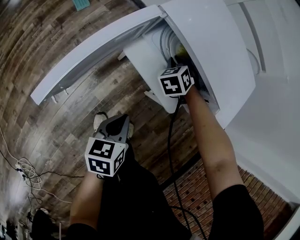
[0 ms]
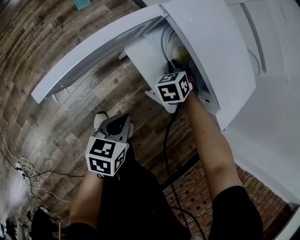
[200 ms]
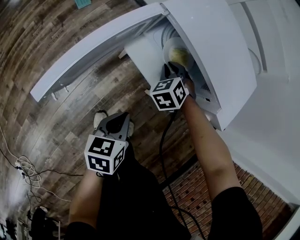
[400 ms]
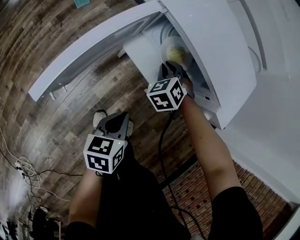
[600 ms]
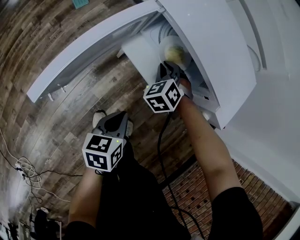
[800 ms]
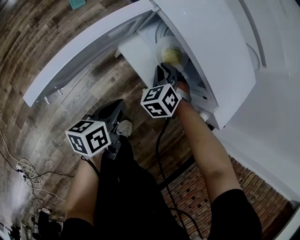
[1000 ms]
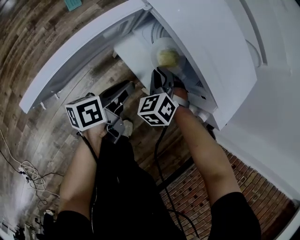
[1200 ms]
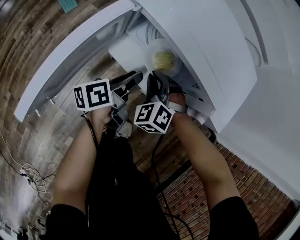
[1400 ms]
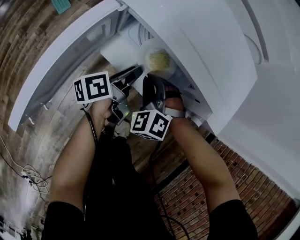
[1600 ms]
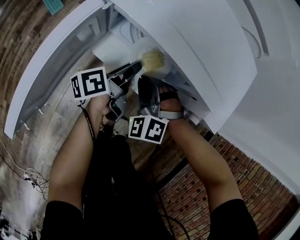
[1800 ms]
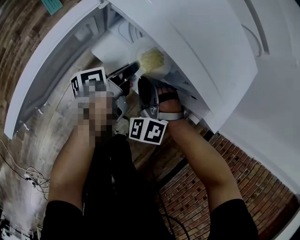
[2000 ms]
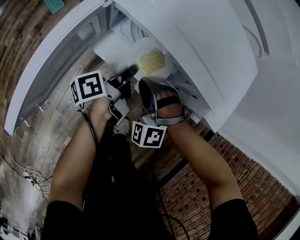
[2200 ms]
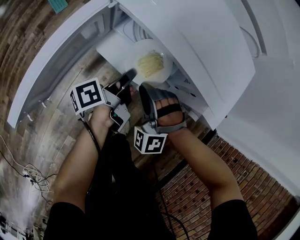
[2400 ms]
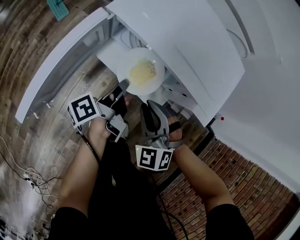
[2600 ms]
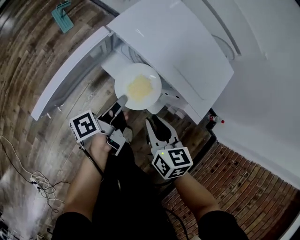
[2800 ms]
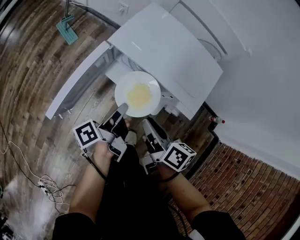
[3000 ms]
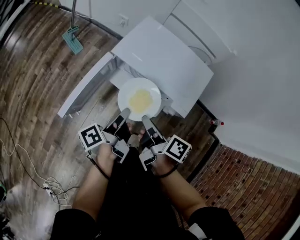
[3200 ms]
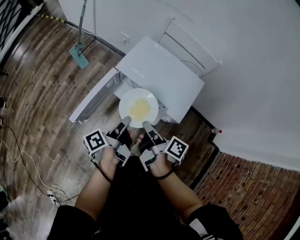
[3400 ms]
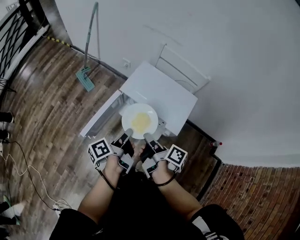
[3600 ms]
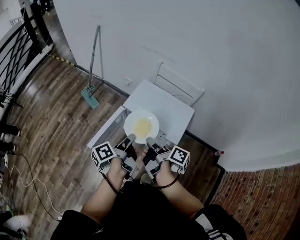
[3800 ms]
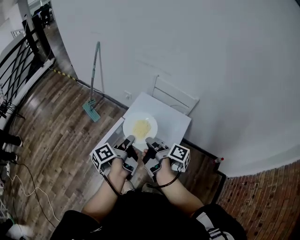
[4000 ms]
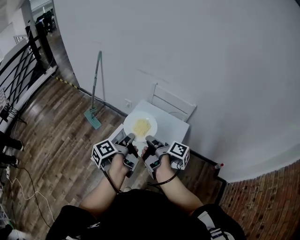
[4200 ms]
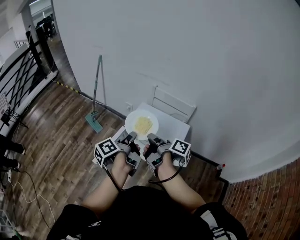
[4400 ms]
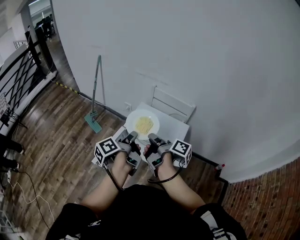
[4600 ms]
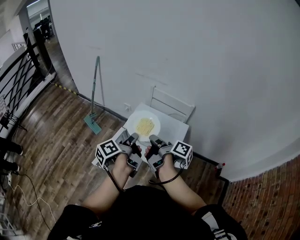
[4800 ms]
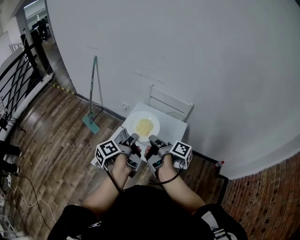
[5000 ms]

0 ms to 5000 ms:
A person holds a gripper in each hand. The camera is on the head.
0 ms to 1600 ms: The right gripper goes some 10 cm backward, and turns by some 20 degrees, while the left gripper goes about 20 cm forward, changes its angle by approximately 40 degrees, and opens its fingers.
1600 ms to 3400 ms: The right gripper heads upward, covering about 30 cm, rotates around the line of its fingers by about 140 degrees, clockwise from behind, and opens, then closes once more, while the left gripper heads upward and backward, covering roughly 30 cm, swivels approximately 20 degrees, and closes its fingers.
3400 ms to 5000 ms: The two grippers go roughly 20 cm upward.

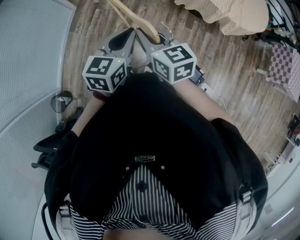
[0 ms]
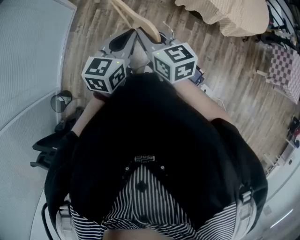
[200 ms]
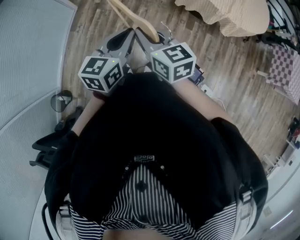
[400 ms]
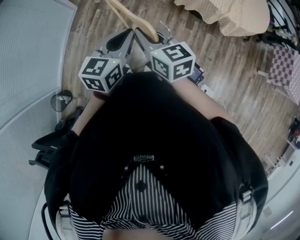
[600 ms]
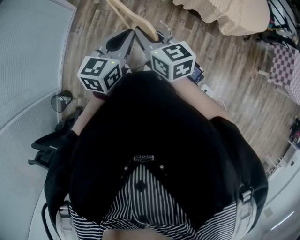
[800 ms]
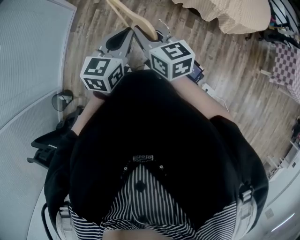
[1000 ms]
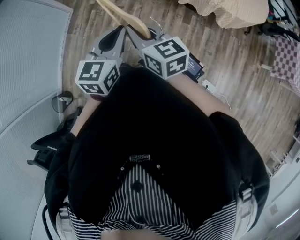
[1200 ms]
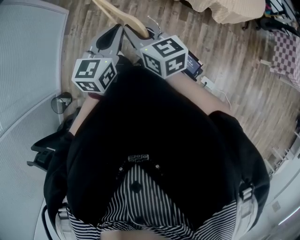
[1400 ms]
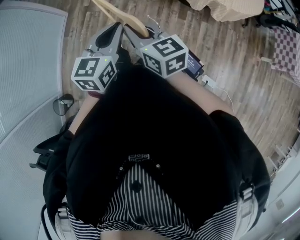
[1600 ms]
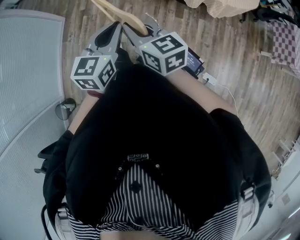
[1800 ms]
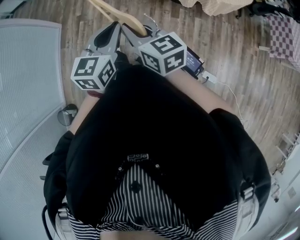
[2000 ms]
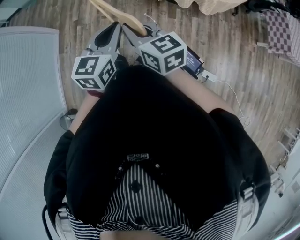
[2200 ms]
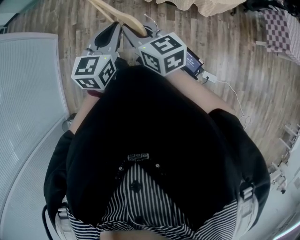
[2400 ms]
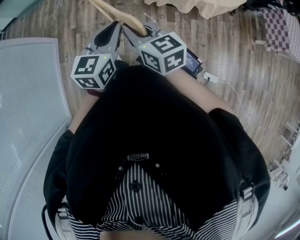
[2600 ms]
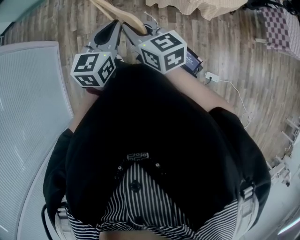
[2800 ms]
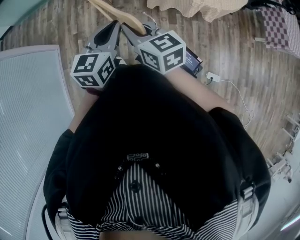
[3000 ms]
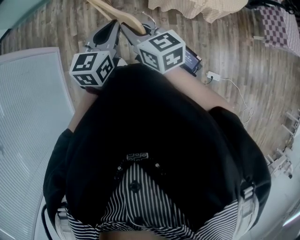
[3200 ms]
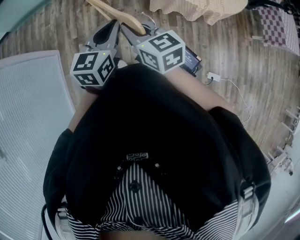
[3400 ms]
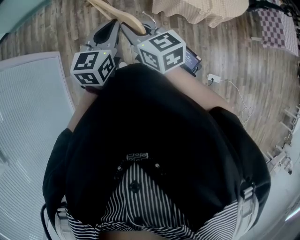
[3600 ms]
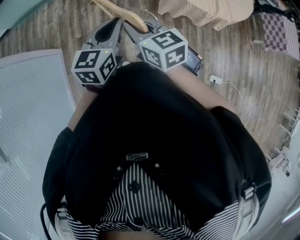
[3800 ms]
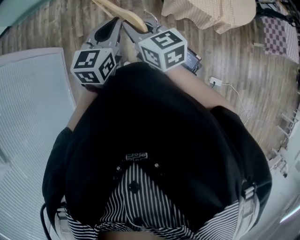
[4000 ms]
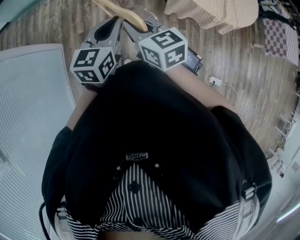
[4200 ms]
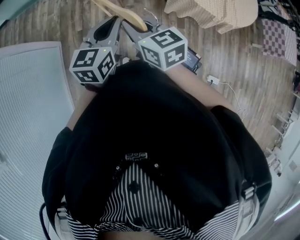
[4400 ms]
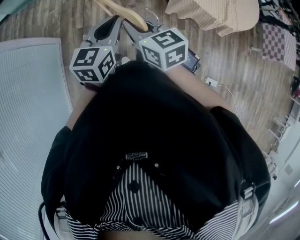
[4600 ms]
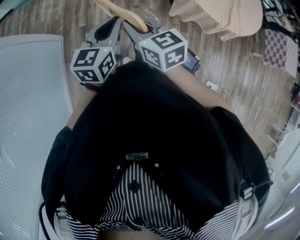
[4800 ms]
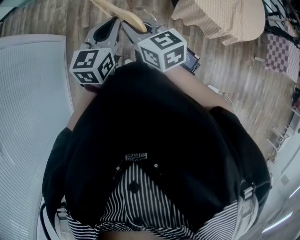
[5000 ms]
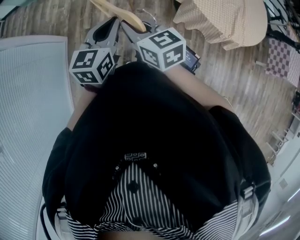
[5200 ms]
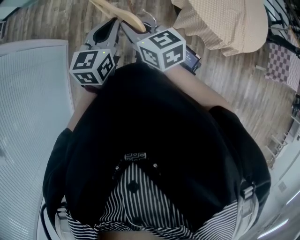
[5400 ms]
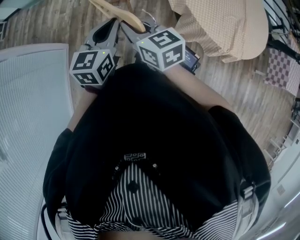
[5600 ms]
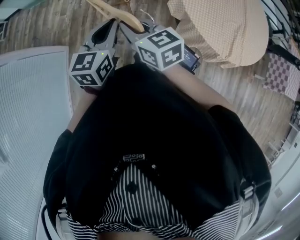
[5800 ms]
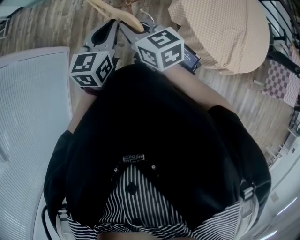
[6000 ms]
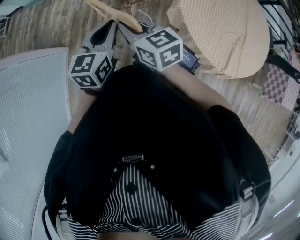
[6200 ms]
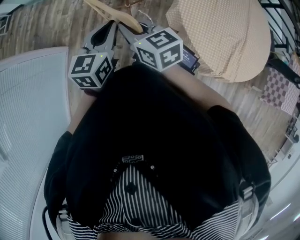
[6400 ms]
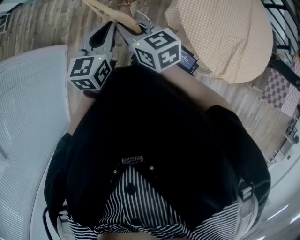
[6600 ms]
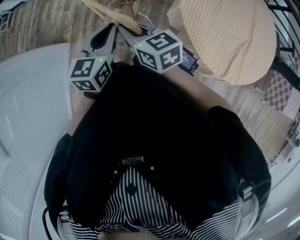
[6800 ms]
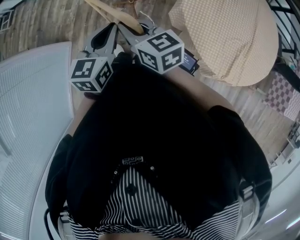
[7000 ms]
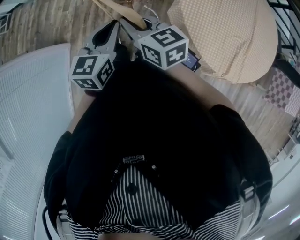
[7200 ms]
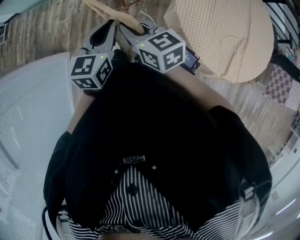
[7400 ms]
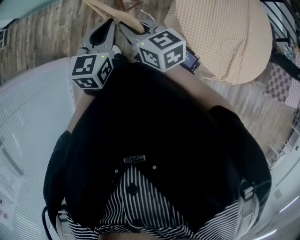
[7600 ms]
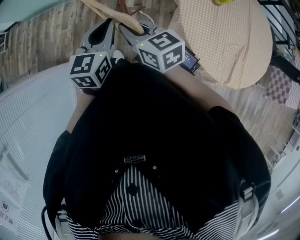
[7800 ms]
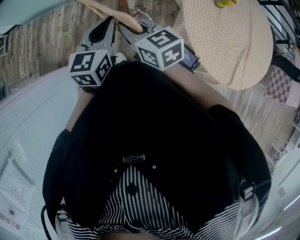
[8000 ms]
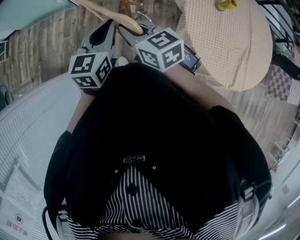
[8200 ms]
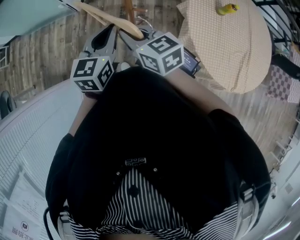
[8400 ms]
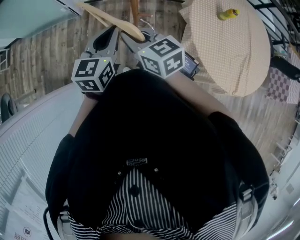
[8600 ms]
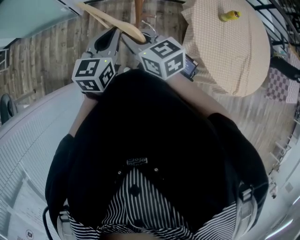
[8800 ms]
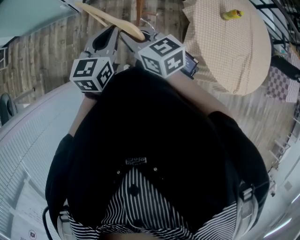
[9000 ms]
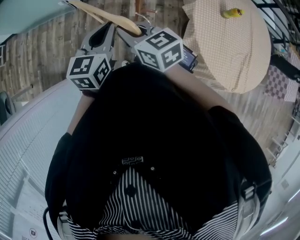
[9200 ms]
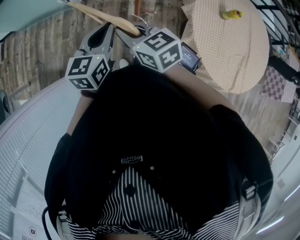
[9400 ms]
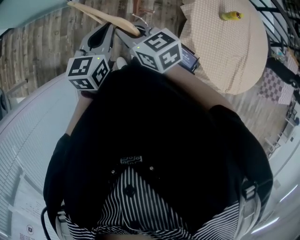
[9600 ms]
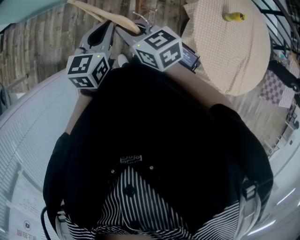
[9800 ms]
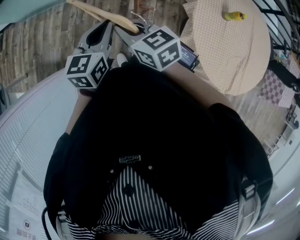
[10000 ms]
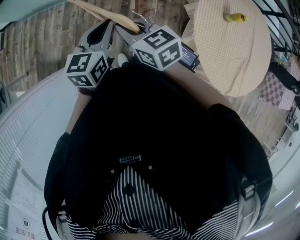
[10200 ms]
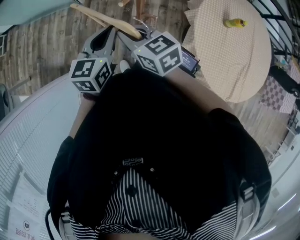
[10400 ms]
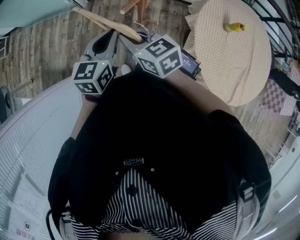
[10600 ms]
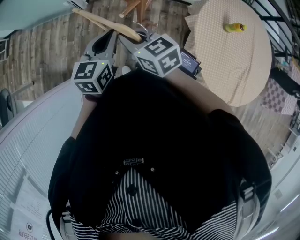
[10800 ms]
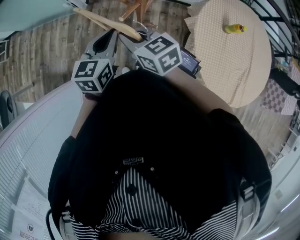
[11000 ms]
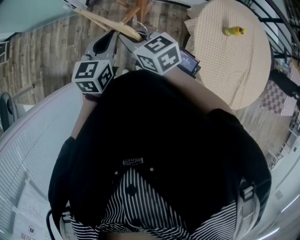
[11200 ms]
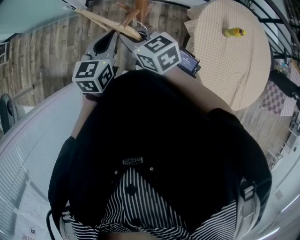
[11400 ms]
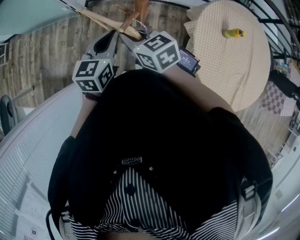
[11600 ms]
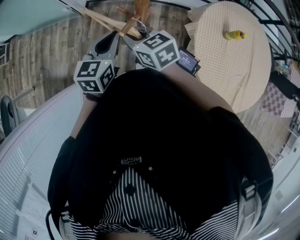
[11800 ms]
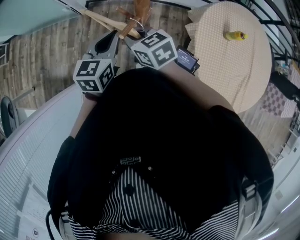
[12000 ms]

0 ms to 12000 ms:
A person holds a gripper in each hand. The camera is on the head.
0 ms to 1600 ms: Both grippers move to the right, about 15 cm.
1600 ms to 3000 ms: The grippers both shift forward by roughly 25 cm.
3000 ms to 4400 ms: Both grippers move to the left and forward, approximately 30 cm.
4400 ms to 6000 ms: Both grippers travel together forward, roughly 25 cm.
6000 ms to 7600 ms: The two grippers go roughly 20 cm forward and to the right.
7600 ms to 9000 ms: The two grippers go some 25 cm forward and to the left.
9000 ms to 10400 ms: The left gripper changes place by about 5 cm. Meanwhile the right gripper moves roughly 5 cm.
10400 ms to 12000 ms: The two grippers go roughly 10 cm forward.

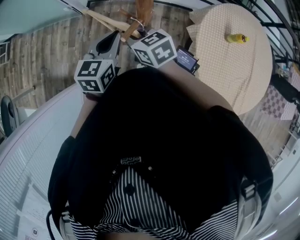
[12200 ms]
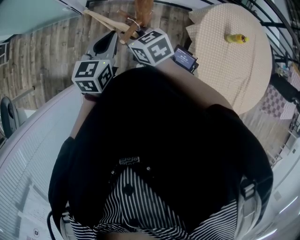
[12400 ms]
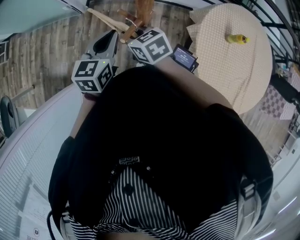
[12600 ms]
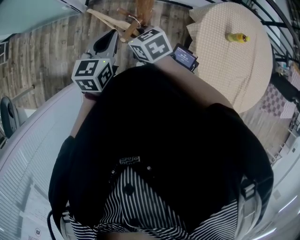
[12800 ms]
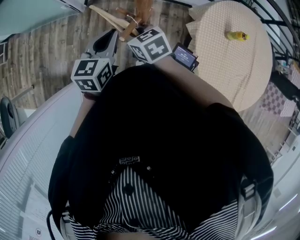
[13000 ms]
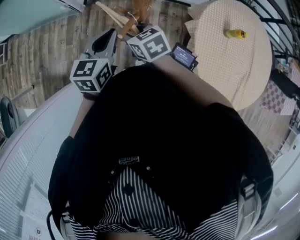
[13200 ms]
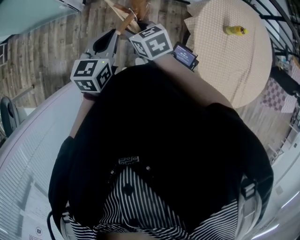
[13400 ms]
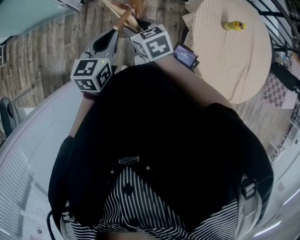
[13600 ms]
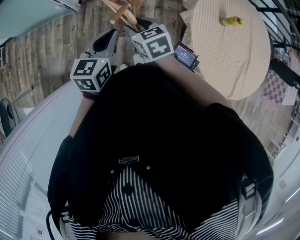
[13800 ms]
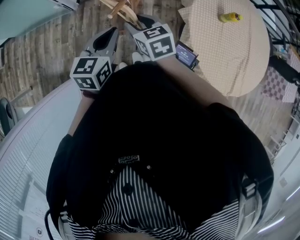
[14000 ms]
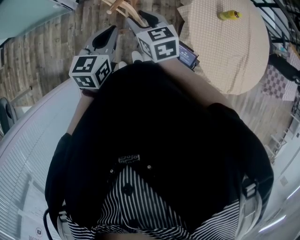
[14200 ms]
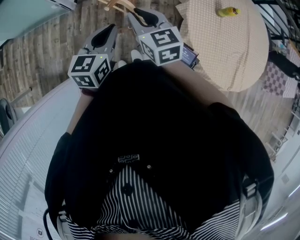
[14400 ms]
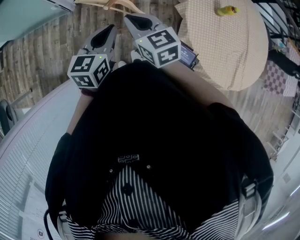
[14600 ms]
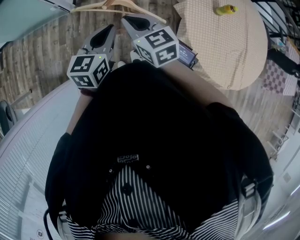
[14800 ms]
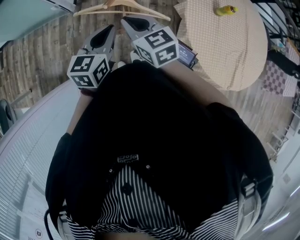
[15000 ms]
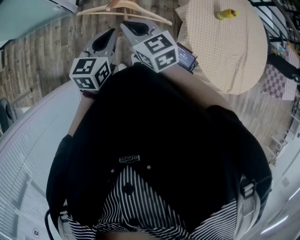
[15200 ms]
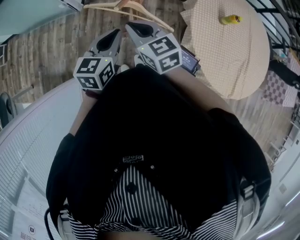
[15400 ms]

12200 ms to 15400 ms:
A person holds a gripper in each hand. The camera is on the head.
12200 ms to 13800 ms: The left gripper shifts approximately 5 cm backward, while the right gripper shifts by approximately 5 cm, and opens up.
13800 ms to 15400 ms: The right gripper moves upward and backward, some 10 cm, and closes. Meanwhile the left gripper heads backward, covering roughly 5 cm.

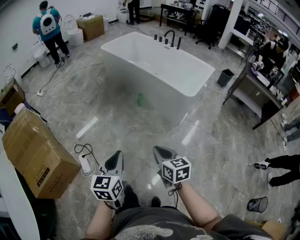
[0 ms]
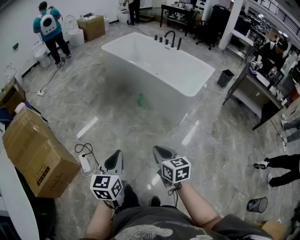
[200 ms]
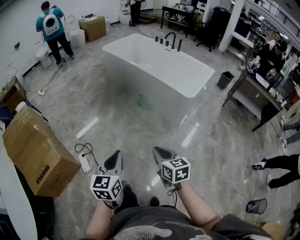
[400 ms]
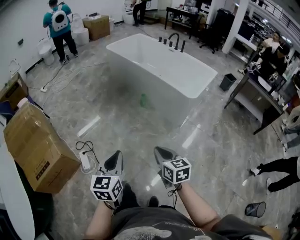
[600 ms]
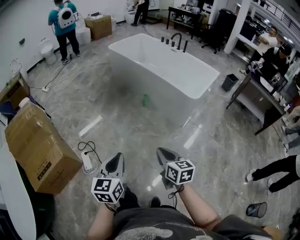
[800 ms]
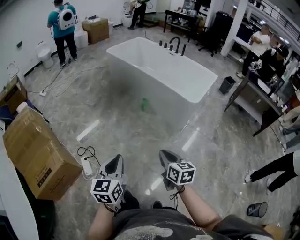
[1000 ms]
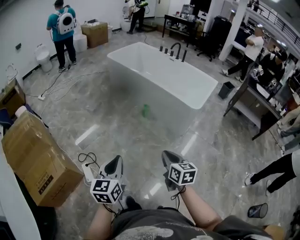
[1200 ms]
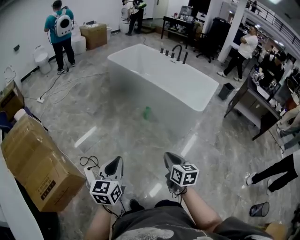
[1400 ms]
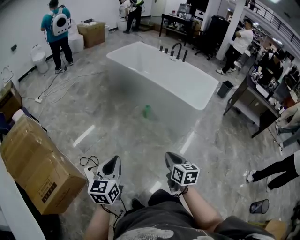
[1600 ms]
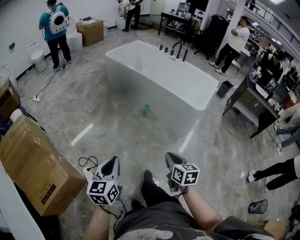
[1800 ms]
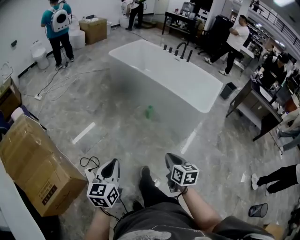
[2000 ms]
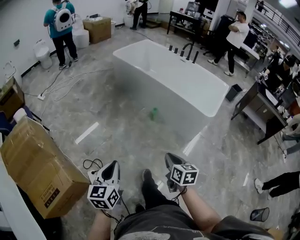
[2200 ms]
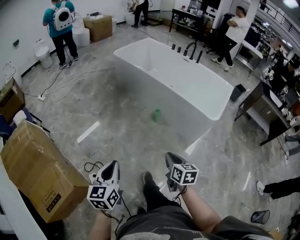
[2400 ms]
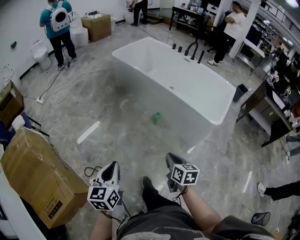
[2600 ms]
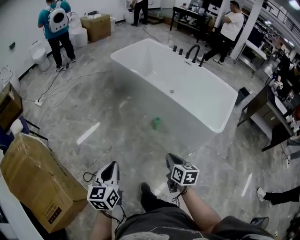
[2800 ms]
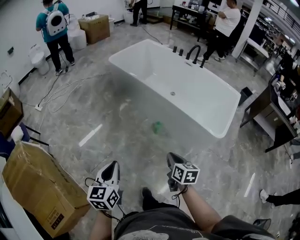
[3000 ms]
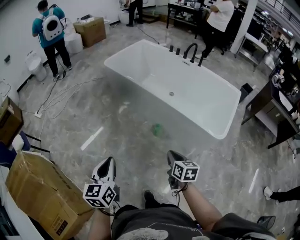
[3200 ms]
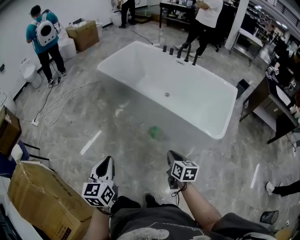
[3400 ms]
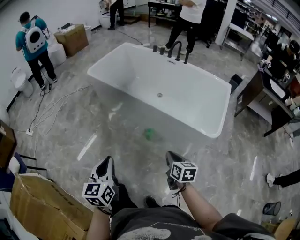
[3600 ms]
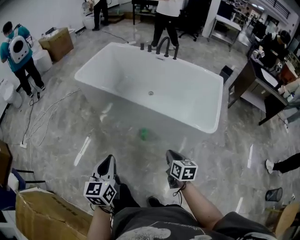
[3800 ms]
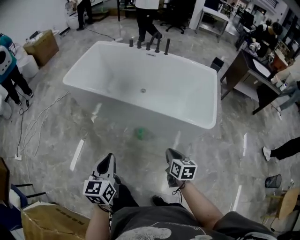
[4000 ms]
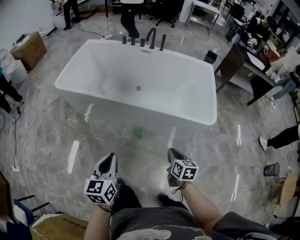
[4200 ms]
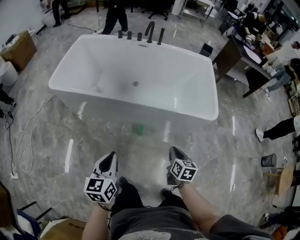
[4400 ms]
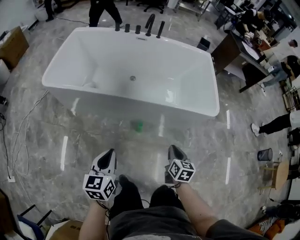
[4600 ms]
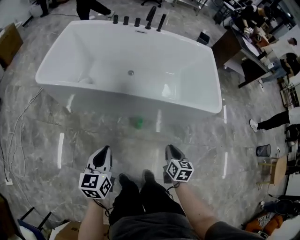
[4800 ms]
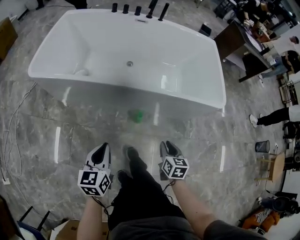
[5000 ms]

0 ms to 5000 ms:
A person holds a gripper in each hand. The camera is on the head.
0 ms to 1600 ms: The right gripper shifts some 10 cm to the left and forward, while the left gripper is displaced to the left and forward by about 15 cm.
1600 ms to 3400 ms: Both grippers are carried forward, some 40 cm.
3400 ms to 5000 ms: The left gripper changes place by roughly 50 cm, and swivels about 40 degrees, while the right gripper ends up some 30 cm from where it was, and swivels approximately 40 degrees.
